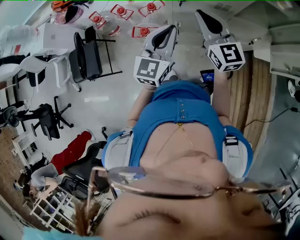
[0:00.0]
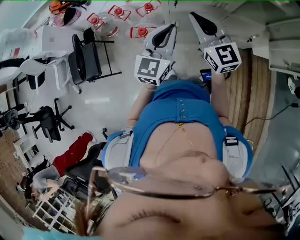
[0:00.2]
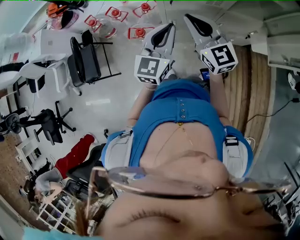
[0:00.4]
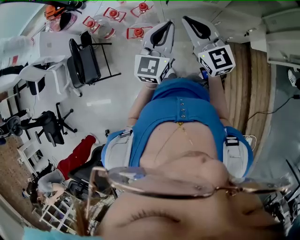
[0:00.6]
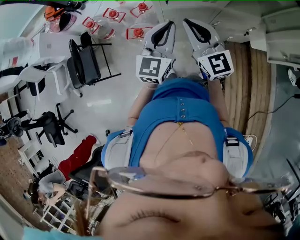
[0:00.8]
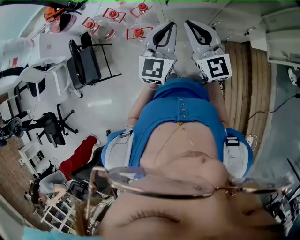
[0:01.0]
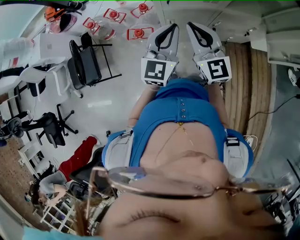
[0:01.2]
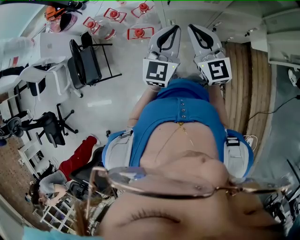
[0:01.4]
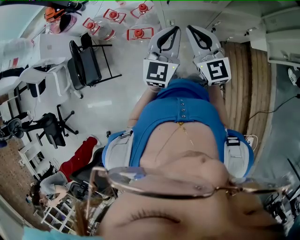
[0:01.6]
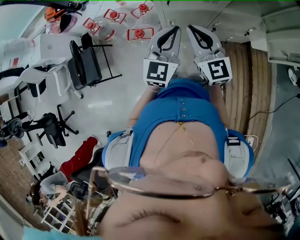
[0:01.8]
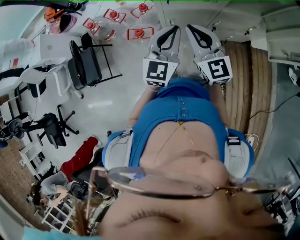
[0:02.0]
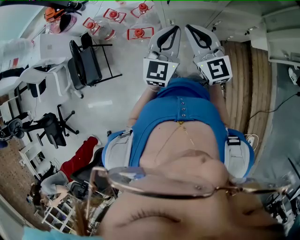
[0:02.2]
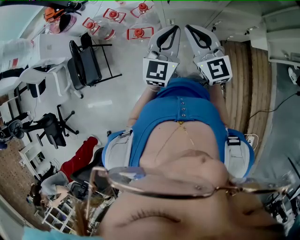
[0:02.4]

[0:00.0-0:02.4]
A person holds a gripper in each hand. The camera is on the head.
0:00.0 to 0:01.2: The right gripper goes approximately 5 cm backward.
0:01.2 to 0:02.4: There are only small adjustments of the grippers.

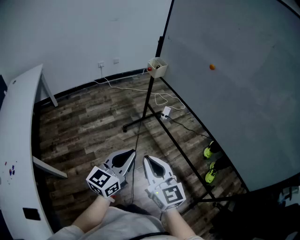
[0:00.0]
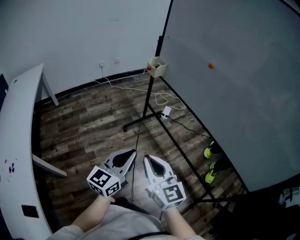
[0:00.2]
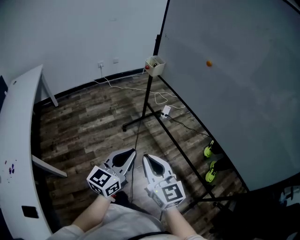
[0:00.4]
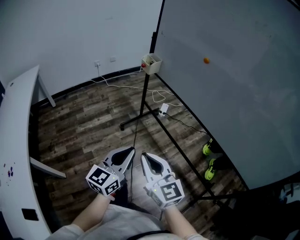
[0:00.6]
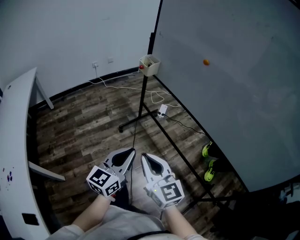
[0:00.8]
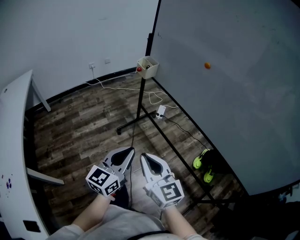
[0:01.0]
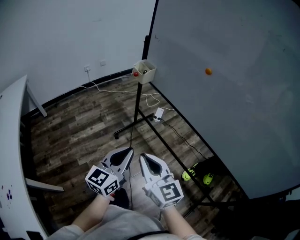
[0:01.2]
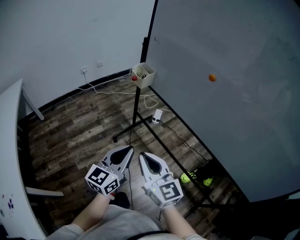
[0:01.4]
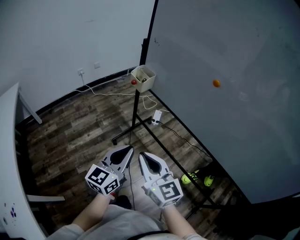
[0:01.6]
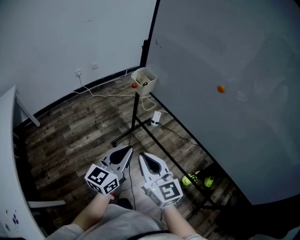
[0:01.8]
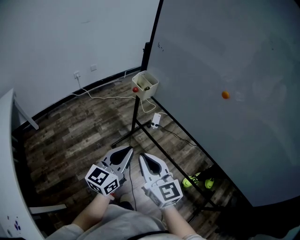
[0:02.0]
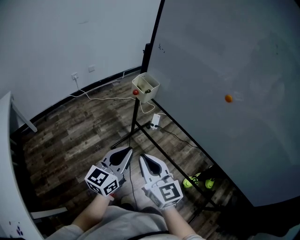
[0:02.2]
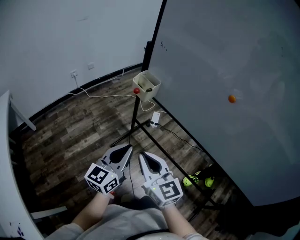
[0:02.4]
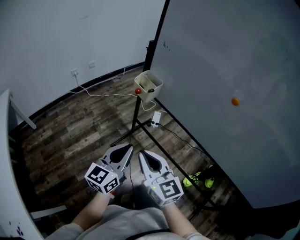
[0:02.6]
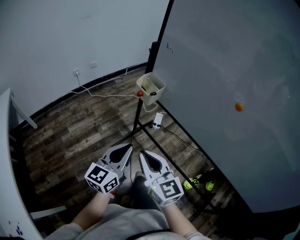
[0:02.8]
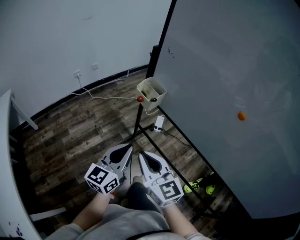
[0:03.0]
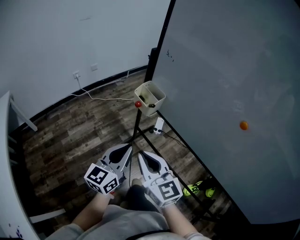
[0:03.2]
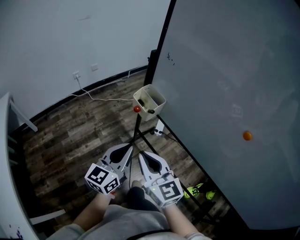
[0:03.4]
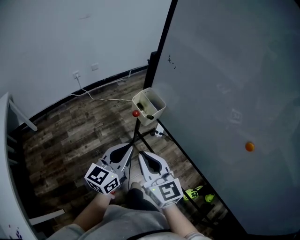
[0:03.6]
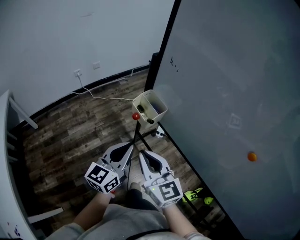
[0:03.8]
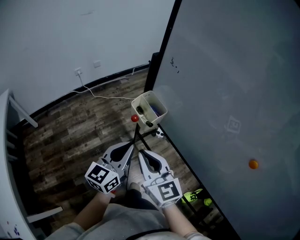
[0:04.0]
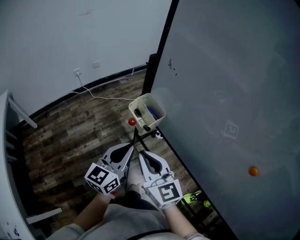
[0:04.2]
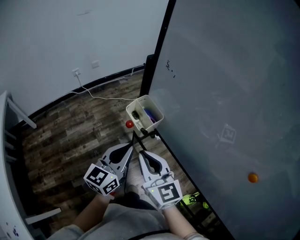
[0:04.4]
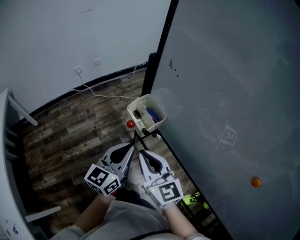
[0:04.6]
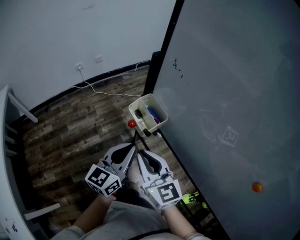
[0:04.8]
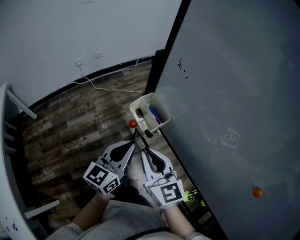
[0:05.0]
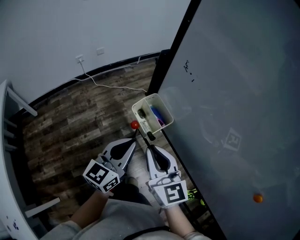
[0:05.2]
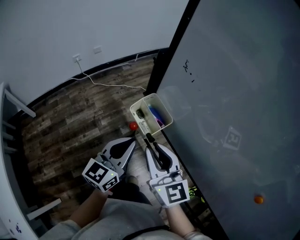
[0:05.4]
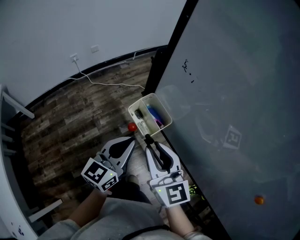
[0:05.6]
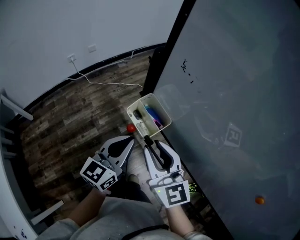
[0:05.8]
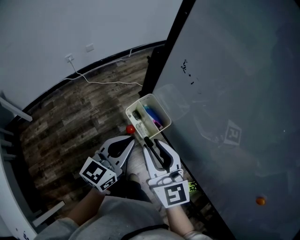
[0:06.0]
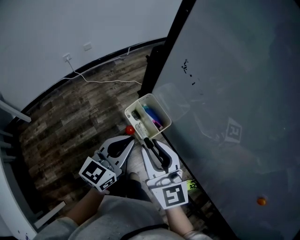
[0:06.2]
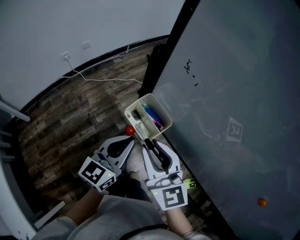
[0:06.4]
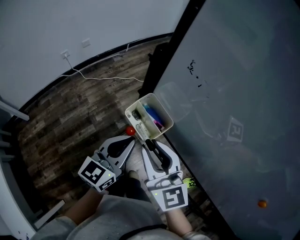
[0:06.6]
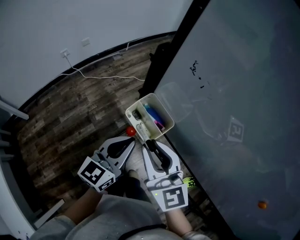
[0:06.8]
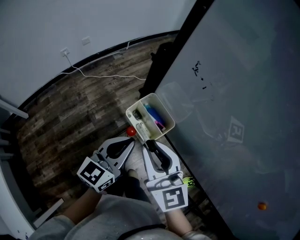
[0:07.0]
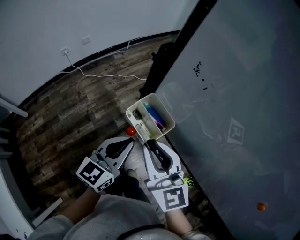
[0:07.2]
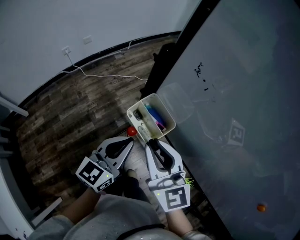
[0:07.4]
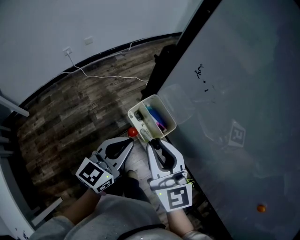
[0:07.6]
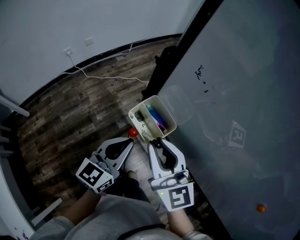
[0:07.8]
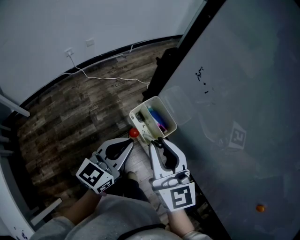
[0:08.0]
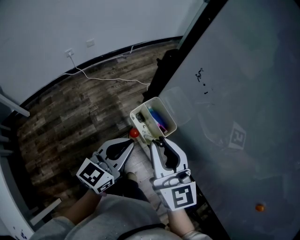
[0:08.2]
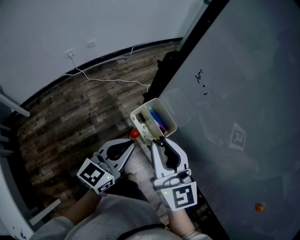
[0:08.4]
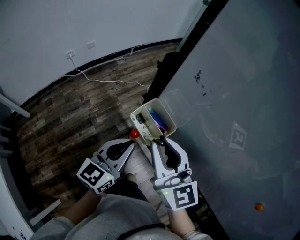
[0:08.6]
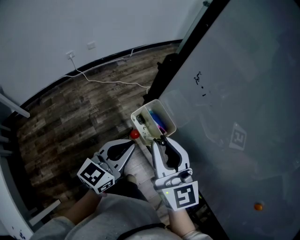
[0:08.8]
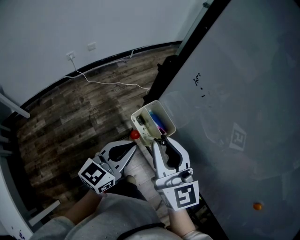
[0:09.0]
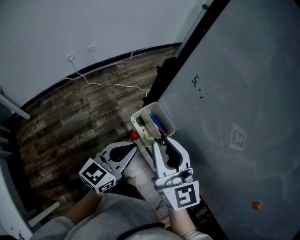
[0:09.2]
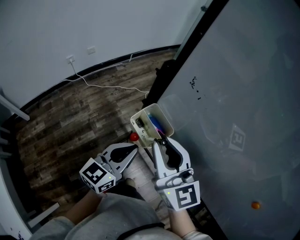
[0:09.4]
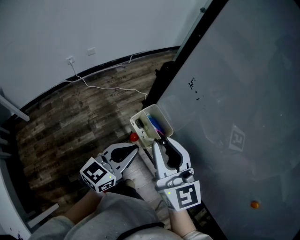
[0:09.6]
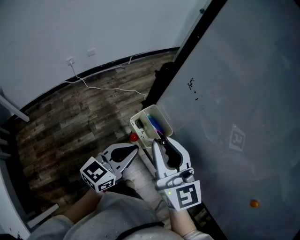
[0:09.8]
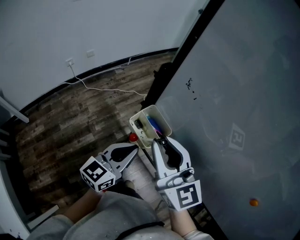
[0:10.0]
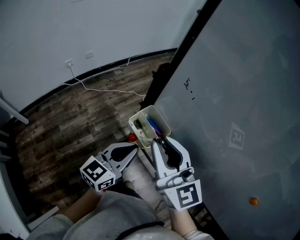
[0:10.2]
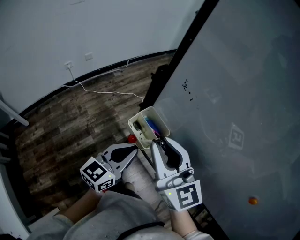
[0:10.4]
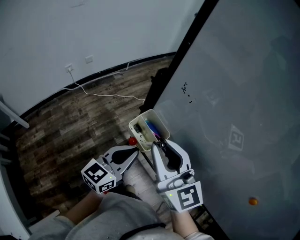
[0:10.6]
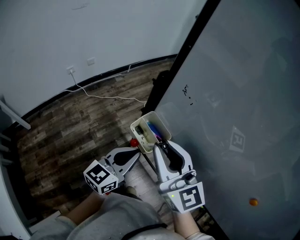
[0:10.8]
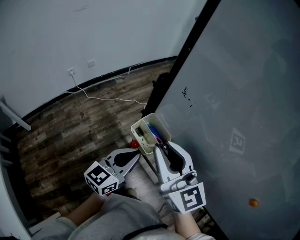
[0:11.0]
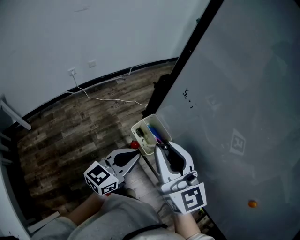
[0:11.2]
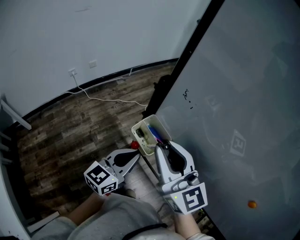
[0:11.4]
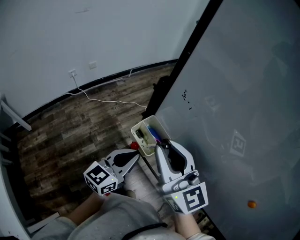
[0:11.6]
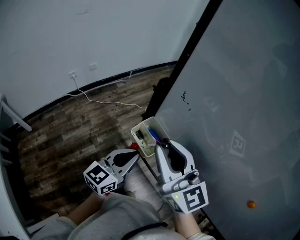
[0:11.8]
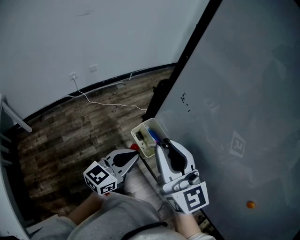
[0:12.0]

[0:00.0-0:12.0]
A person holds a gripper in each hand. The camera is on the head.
0:00.0 to 0:01.6: Both grippers move forward, approximately 25 cm.
0:01.6 to 0:03.0: Both grippers travel together forward, some 15 cm.
0:03.0 to 0:04.4: The grippers both shift forward by some 20 cm.
0:04.4 to 0:06.0: Both grippers travel together forward, some 10 cm. The right gripper opens.
0:06.0 to 0:09.0: The grippers stay close to where they were, moving slightly.
0:09.0 to 0:10.4: The grippers stay close to where they were, moving slightly.
0:10.4 to 0:12.0: There are only small adjustments of the grippers.

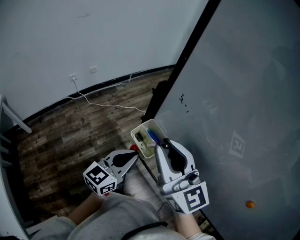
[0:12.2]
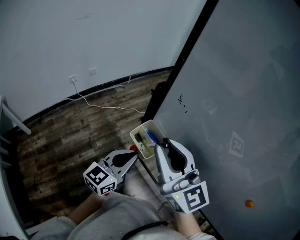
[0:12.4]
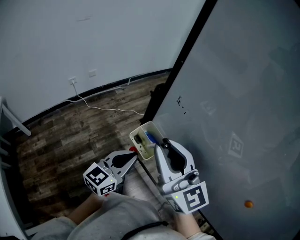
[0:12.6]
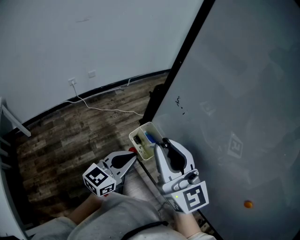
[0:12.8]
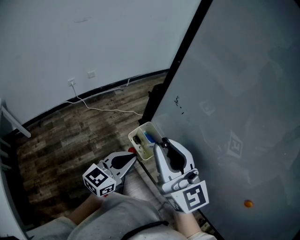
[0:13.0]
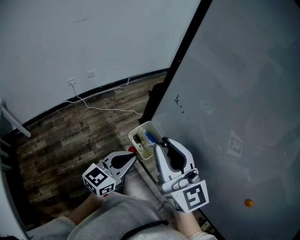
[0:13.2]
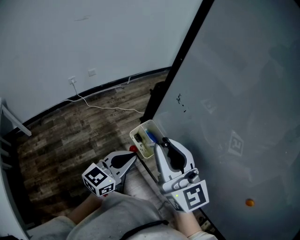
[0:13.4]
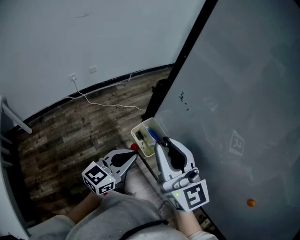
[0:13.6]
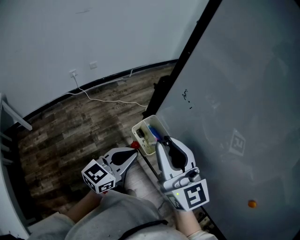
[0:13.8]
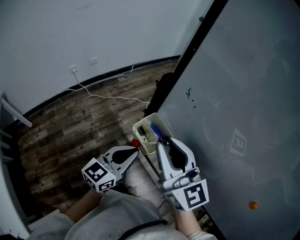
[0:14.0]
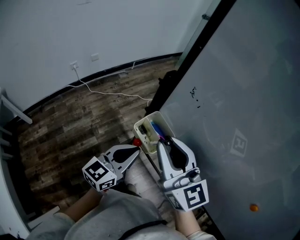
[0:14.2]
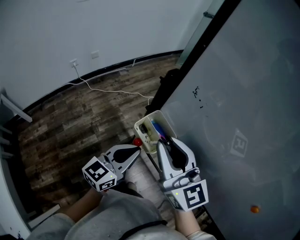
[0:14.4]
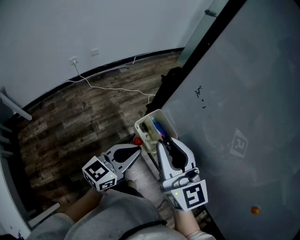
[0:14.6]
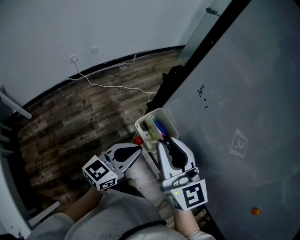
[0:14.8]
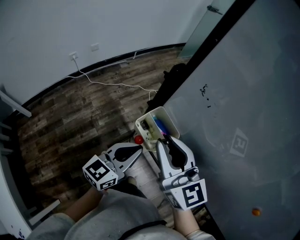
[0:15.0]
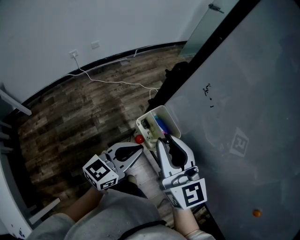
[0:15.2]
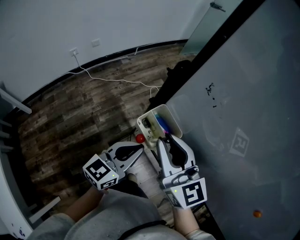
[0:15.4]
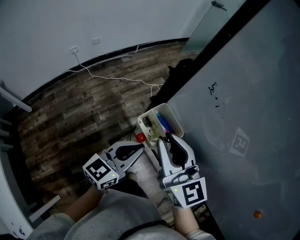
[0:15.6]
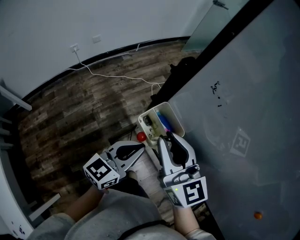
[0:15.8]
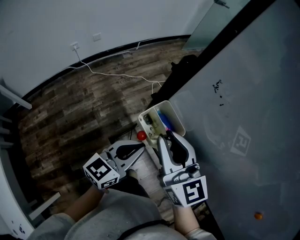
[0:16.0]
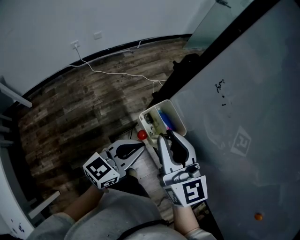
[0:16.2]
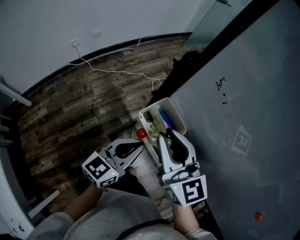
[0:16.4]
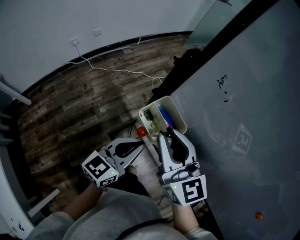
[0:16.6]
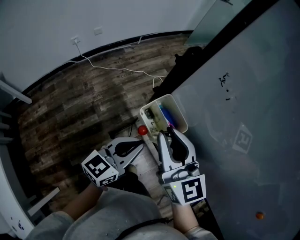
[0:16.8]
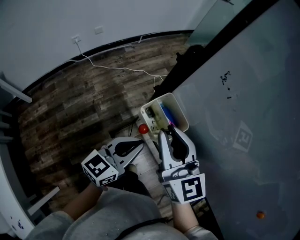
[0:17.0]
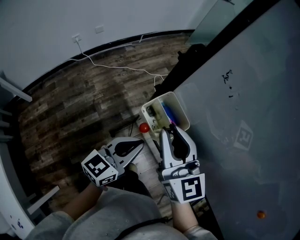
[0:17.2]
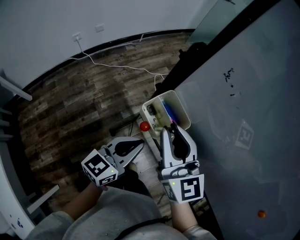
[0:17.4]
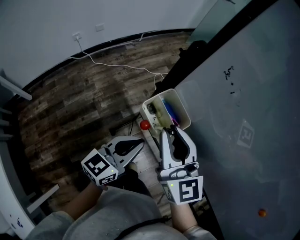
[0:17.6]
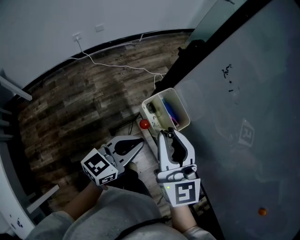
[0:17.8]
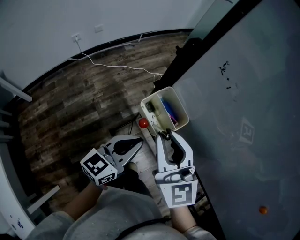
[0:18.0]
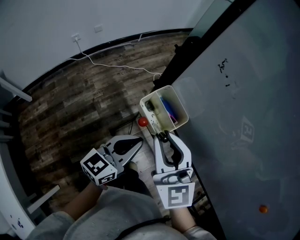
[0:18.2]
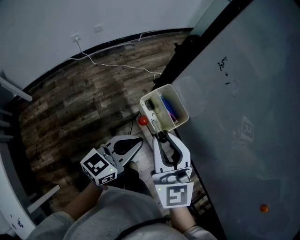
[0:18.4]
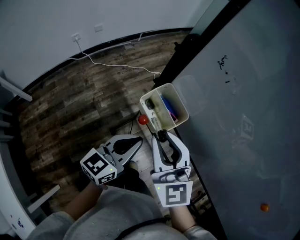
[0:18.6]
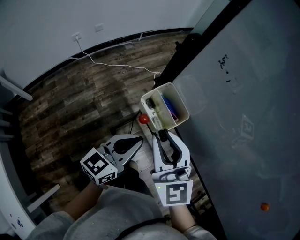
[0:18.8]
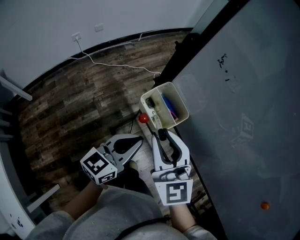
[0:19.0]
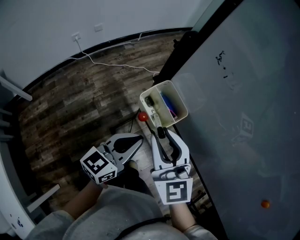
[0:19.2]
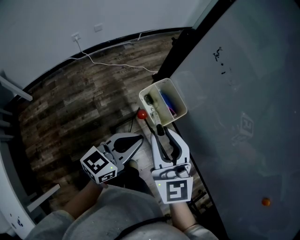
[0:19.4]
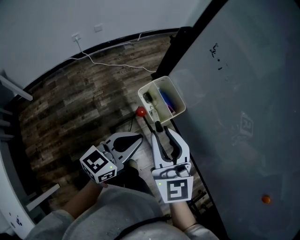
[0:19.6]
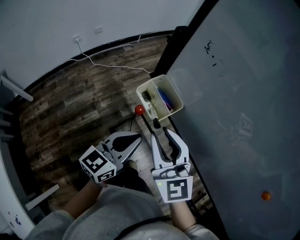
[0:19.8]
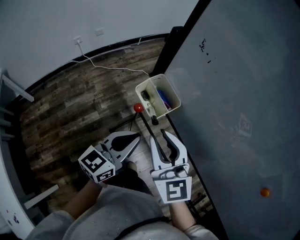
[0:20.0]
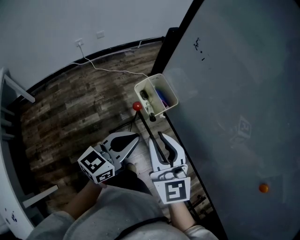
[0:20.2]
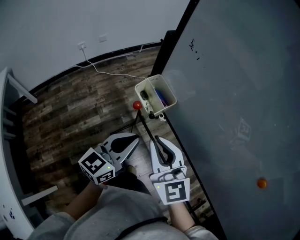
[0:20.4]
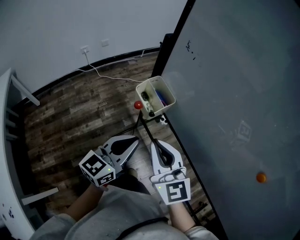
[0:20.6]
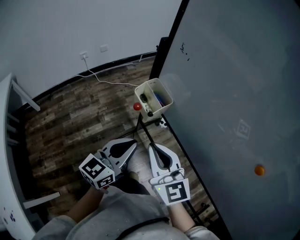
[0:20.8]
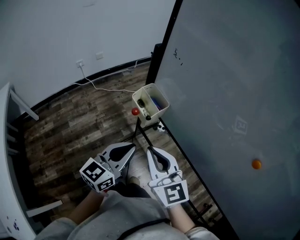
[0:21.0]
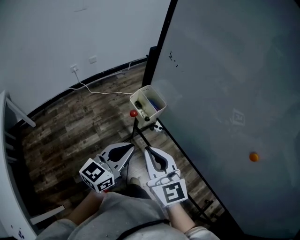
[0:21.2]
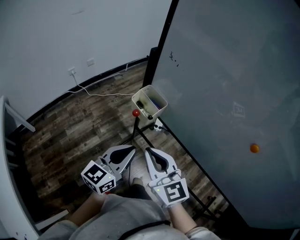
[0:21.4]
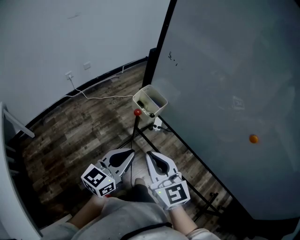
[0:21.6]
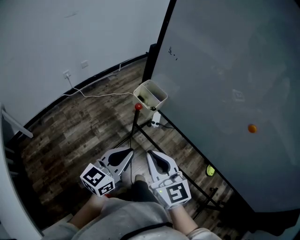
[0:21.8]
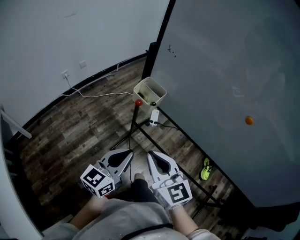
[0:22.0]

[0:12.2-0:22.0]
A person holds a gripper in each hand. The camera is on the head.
0:12.2 to 0:13.6: There are only small adjustments of the grippers.
0:13.6 to 0:15.0: The right gripper travels downward by about 5 cm.
0:15.0 to 0:17.8: The grippers stay close to where they were, moving slightly.
0:17.8 to 0:19.2: The grippers move only a little.
0:19.2 to 0:20.6: Both grippers travel together backward, about 10 cm.
0:20.6 to 0:22.0: The right gripper heads backward, covering some 10 cm; the left gripper is displaced backward and to the left by some 15 cm.
